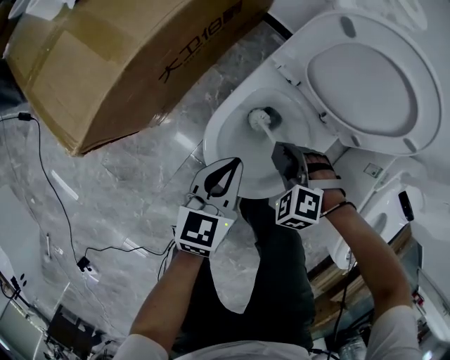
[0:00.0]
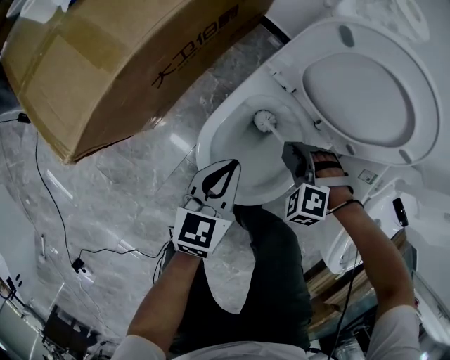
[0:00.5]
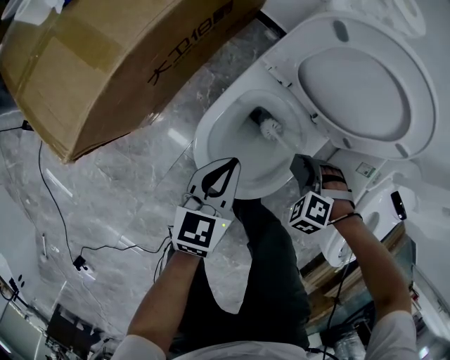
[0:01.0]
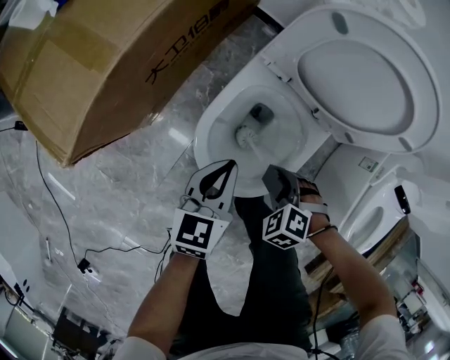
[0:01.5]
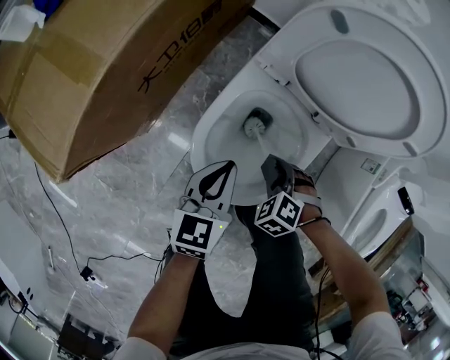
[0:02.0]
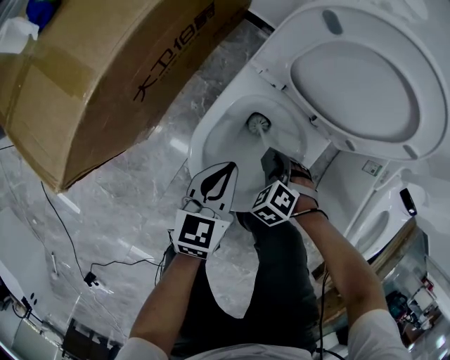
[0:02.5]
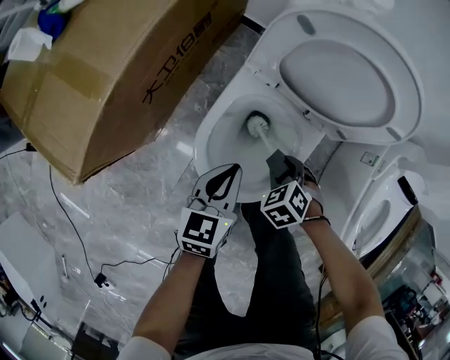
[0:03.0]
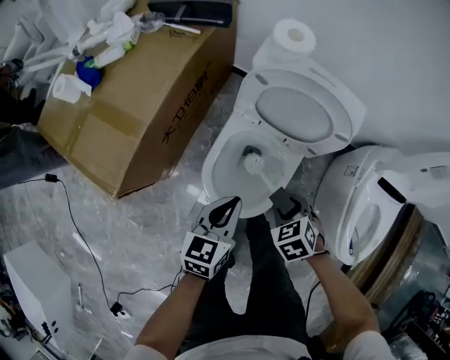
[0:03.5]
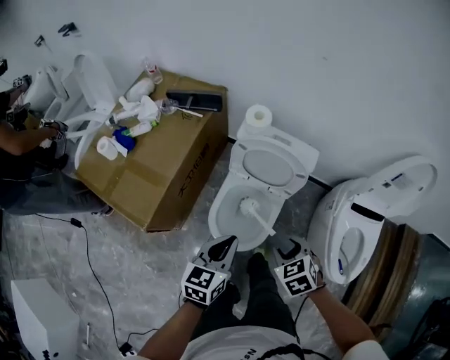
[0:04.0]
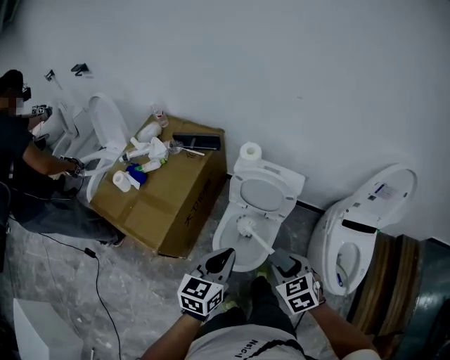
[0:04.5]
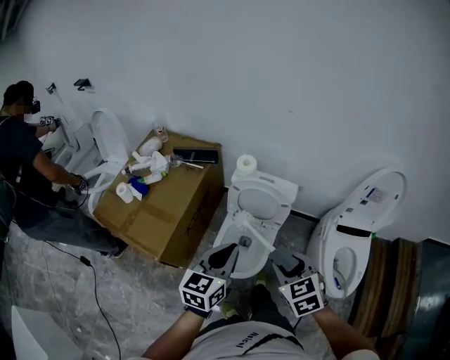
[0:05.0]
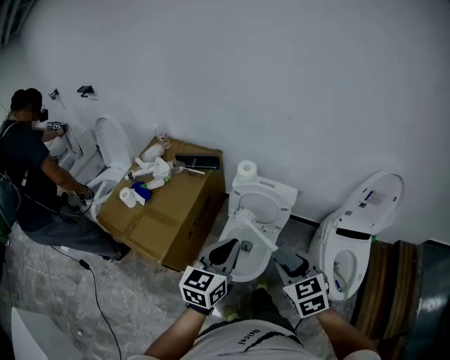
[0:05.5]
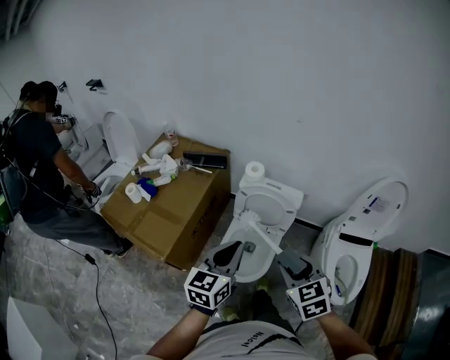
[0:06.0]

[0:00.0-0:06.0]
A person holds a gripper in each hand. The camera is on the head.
0:00.0 to 0:02.0: The right gripper heads downward, covering about 5 cm, and swivels approximately 20 degrees.
0:02.0 to 0:04.0: The two grippers go about 40 cm upward. The right gripper rotates roughly 40 degrees.
0:04.0 to 0:06.0: Both grippers travel together upward, about 20 cm. The right gripper rotates some 20 degrees.

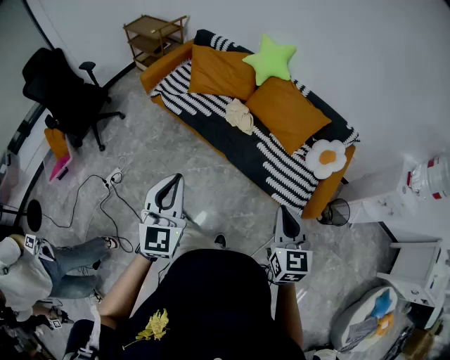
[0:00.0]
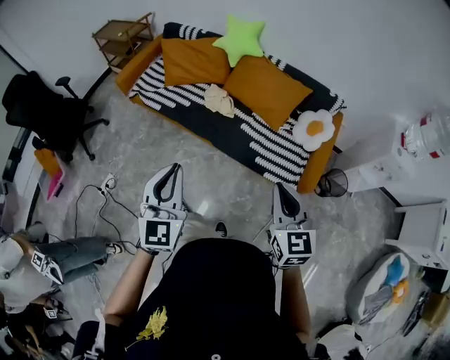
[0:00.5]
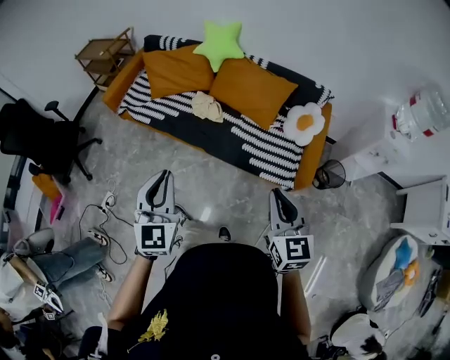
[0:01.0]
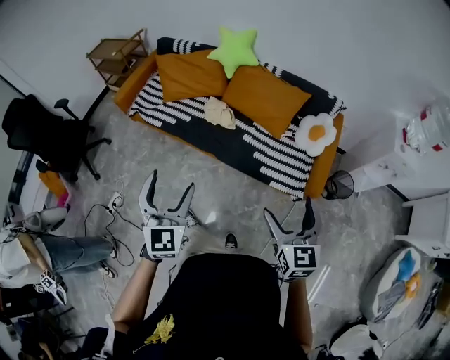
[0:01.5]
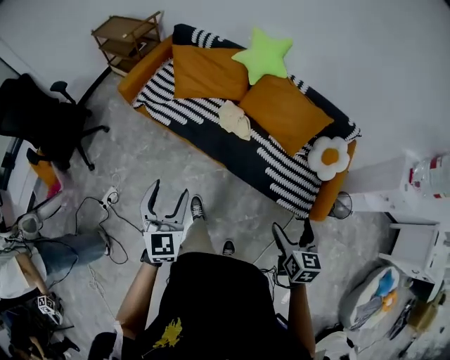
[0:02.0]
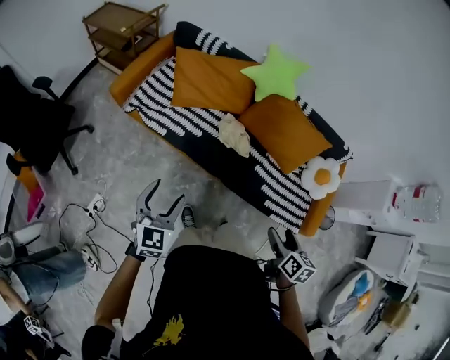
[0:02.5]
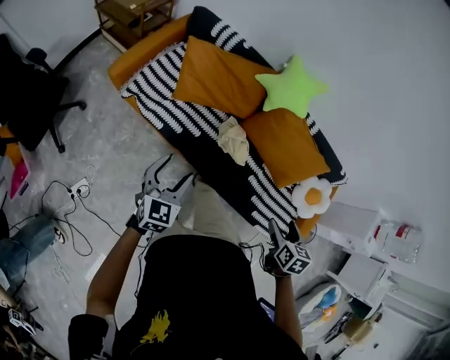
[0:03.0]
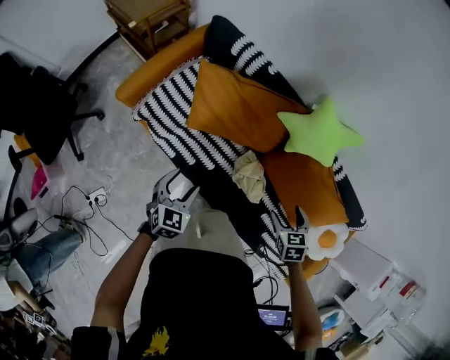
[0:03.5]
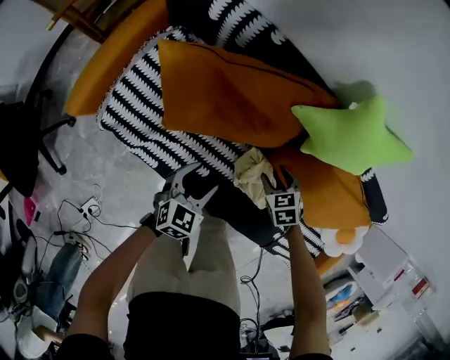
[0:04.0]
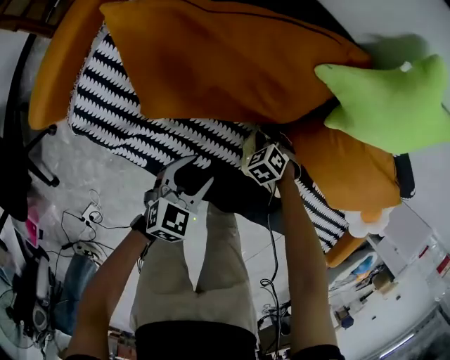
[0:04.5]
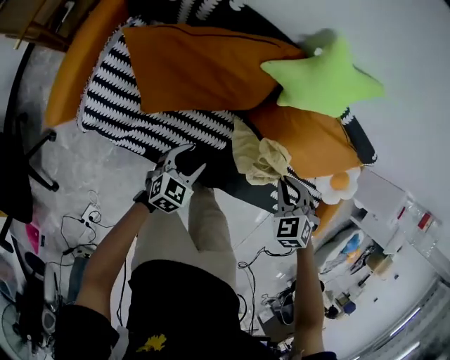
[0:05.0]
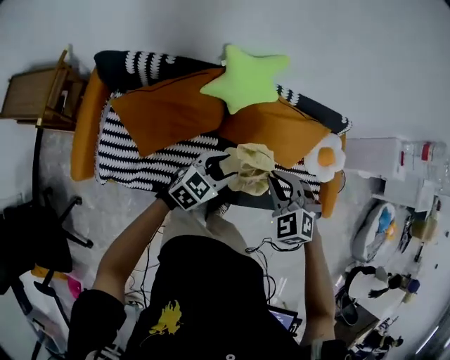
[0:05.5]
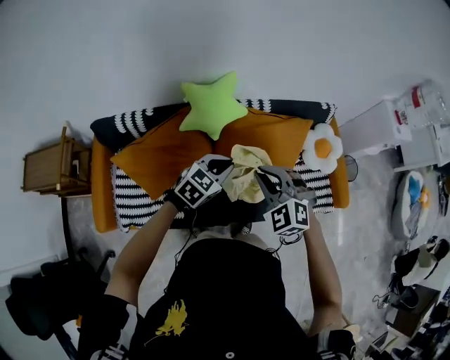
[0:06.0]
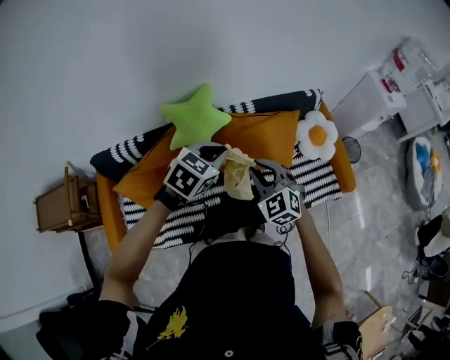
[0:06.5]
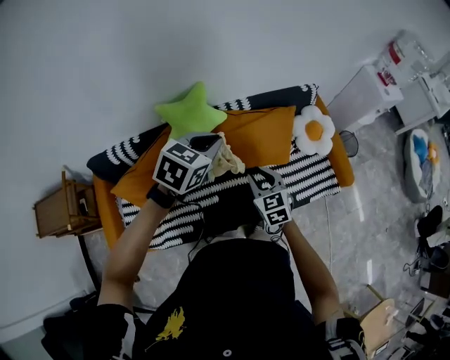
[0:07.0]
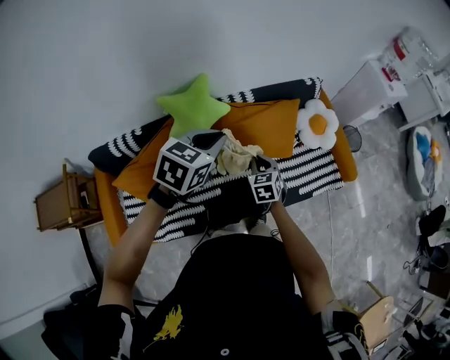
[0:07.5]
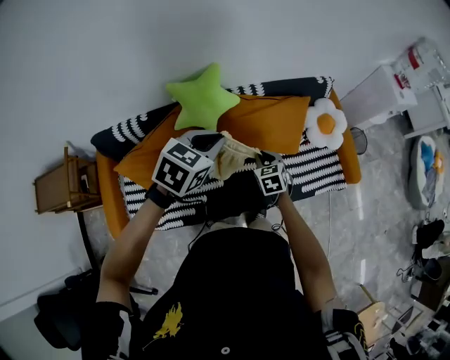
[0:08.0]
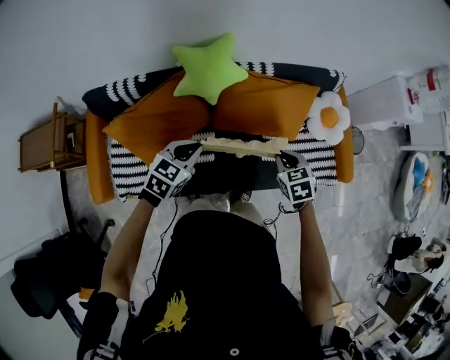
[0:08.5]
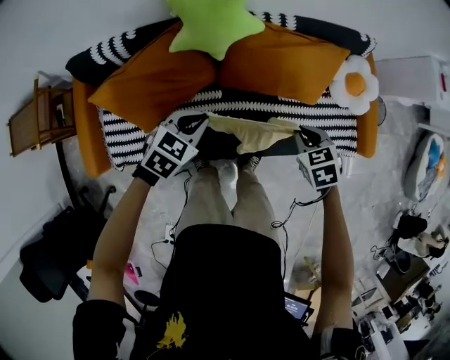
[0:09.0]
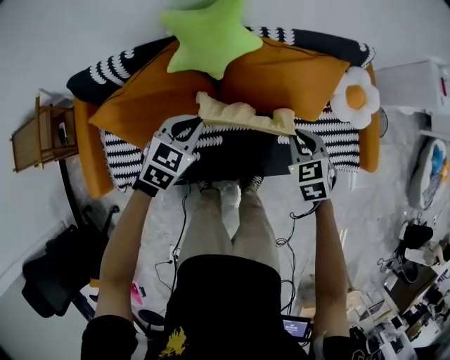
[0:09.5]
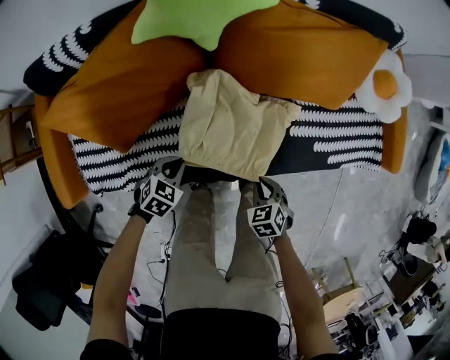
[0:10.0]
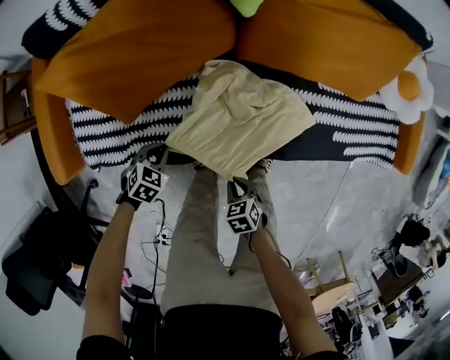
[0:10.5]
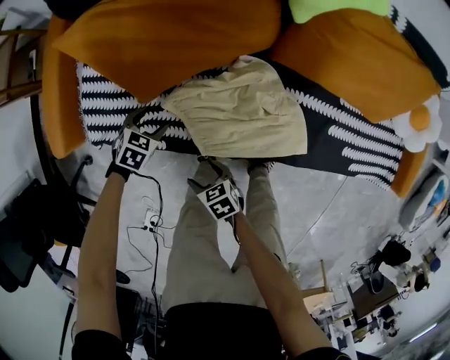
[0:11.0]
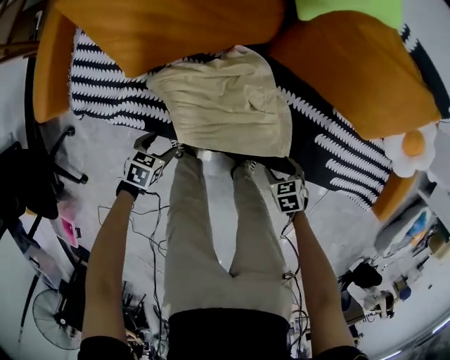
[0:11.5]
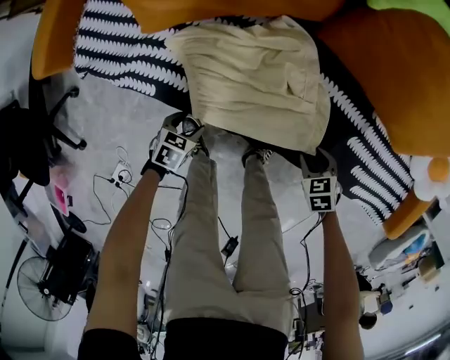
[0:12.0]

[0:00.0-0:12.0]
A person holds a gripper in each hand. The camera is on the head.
0:00.0 to 0:02.0: The left gripper is displaced forward and to the left by roughly 25 cm, and opens; the right gripper goes about 15 cm forward and downward, changes its angle by some 20 degrees, and opens its fingers.
0:02.0 to 0:04.0: The pair of grippers is taken forward, about 80 cm. Both grippers move downward, approximately 40 cm. The left gripper changes its angle by approximately 40 degrees. The right gripper tilts its fingers approximately 30 degrees downward, and closes.
0:04.0 to 0:06.0: Both grippers move upward, approximately 40 cm. The right gripper tilts its fingers approximately 30 degrees upward, and closes up, while the left gripper swivels some 50 degrees, and closes.
0:06.0 to 0:08.0: The right gripper heads downward, covering roughly 20 cm, and twists about 50 degrees clockwise, seen from behind. Meanwhile the left gripper is displaced upward by about 10 cm.
0:08.0 to 0:10.0: The left gripper shifts some 60 cm downward, and turns by approximately 20 degrees; the right gripper heads downward and backward, covering approximately 40 cm, and turns by about 20 degrees.
0:10.0 to 0:12.0: Both grippers travel together downward, about 20 cm. The right gripper swivels about 30 degrees, while the left gripper twists some 40 degrees counterclockwise, seen from behind, and opens its fingers.

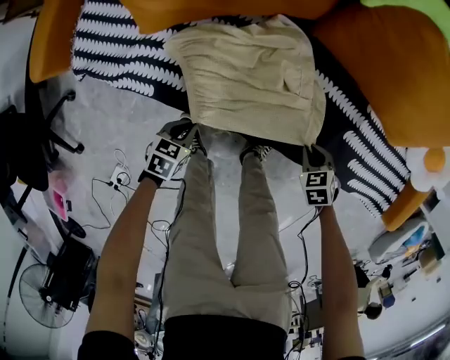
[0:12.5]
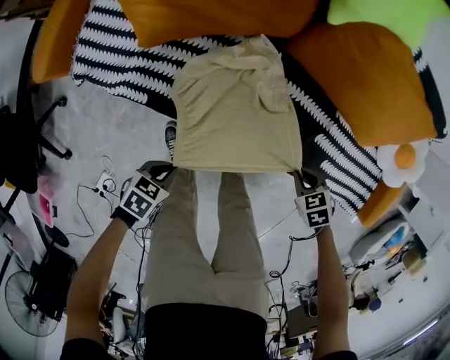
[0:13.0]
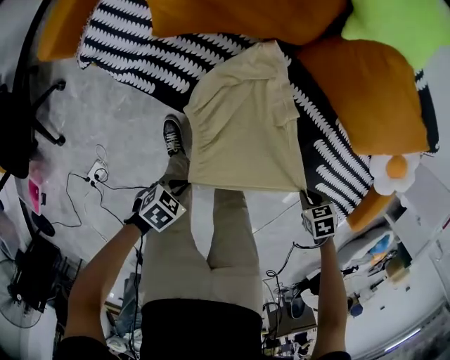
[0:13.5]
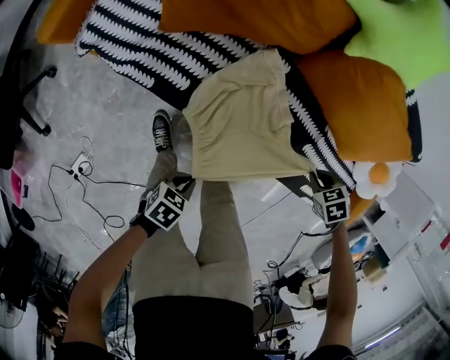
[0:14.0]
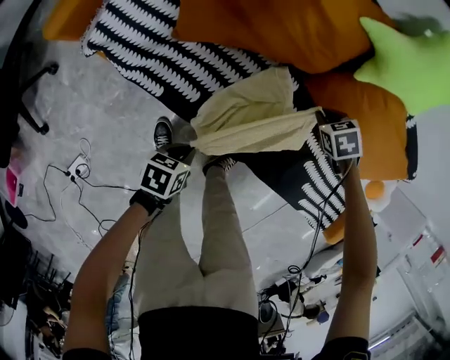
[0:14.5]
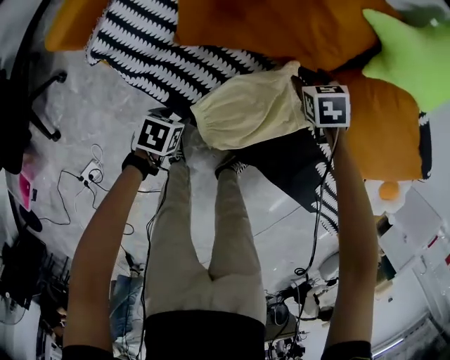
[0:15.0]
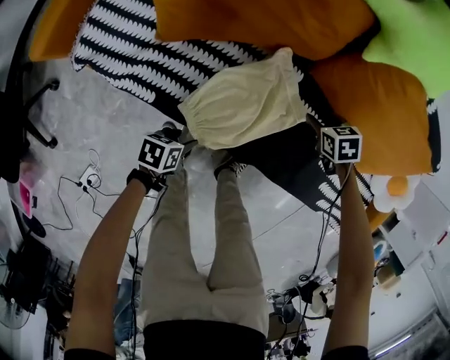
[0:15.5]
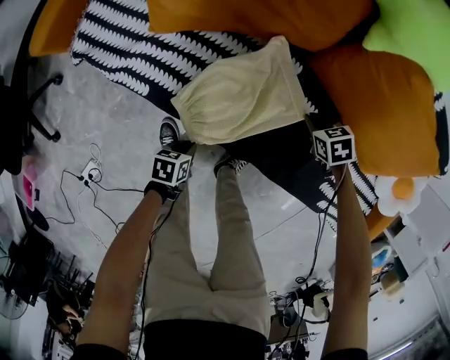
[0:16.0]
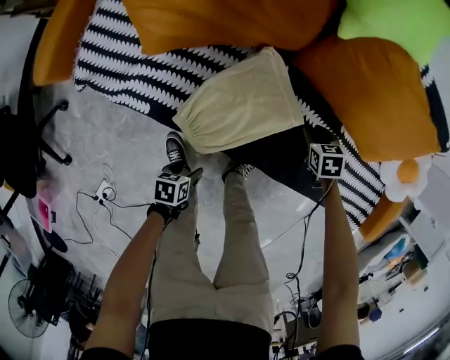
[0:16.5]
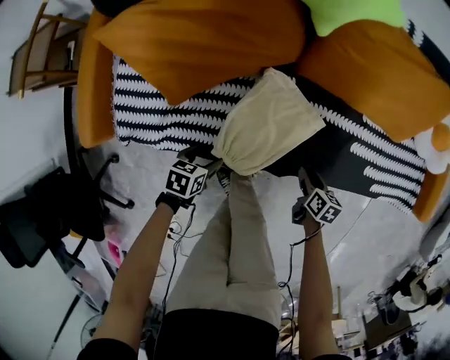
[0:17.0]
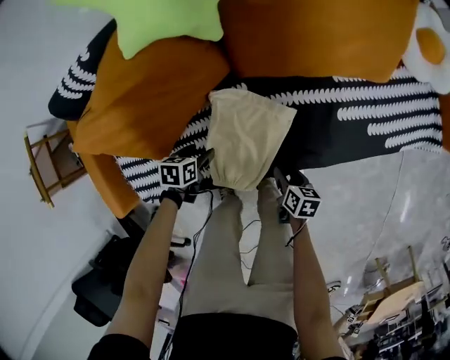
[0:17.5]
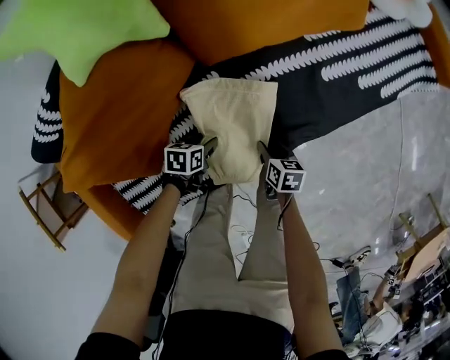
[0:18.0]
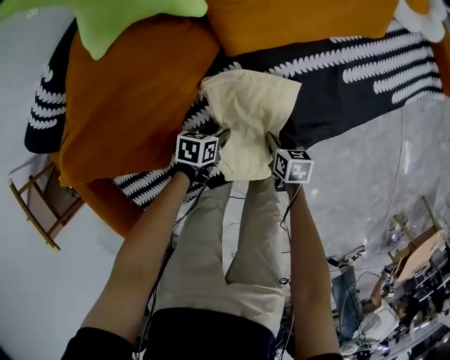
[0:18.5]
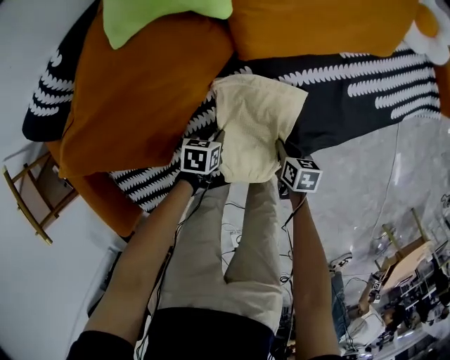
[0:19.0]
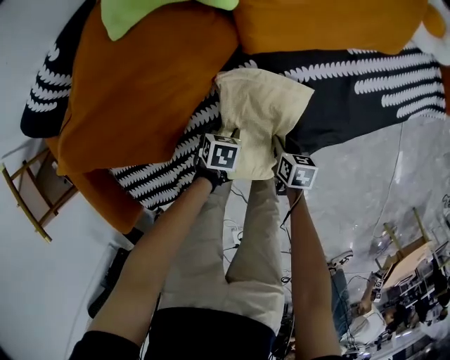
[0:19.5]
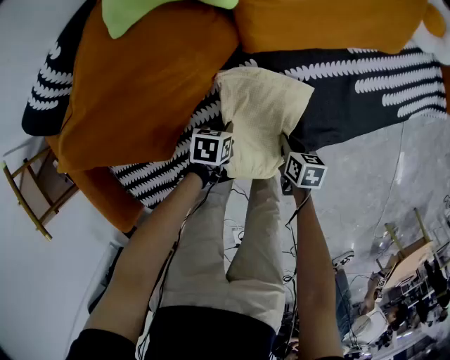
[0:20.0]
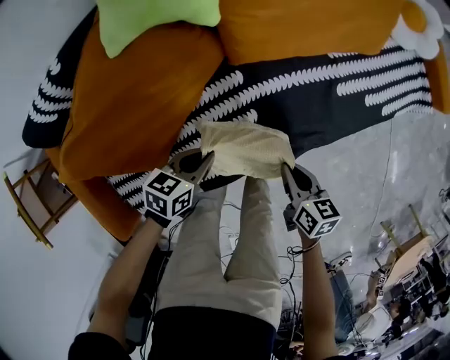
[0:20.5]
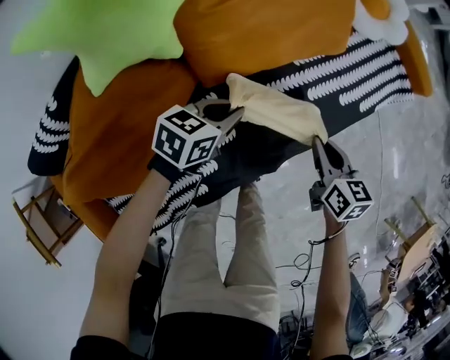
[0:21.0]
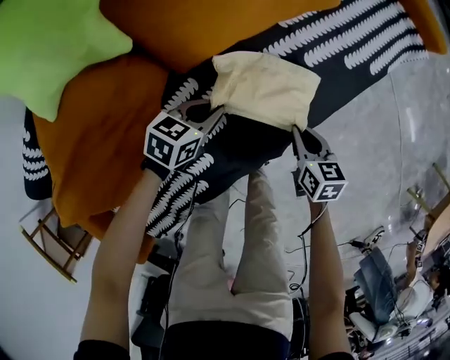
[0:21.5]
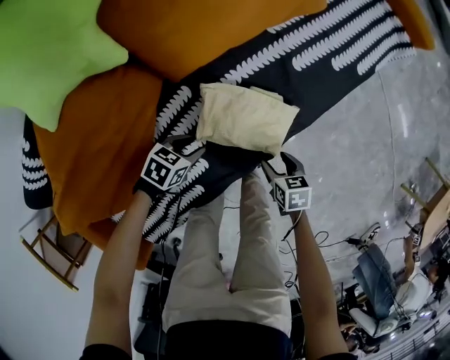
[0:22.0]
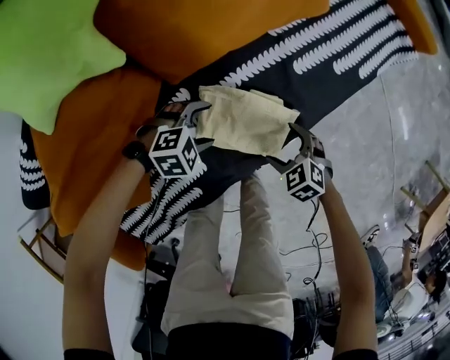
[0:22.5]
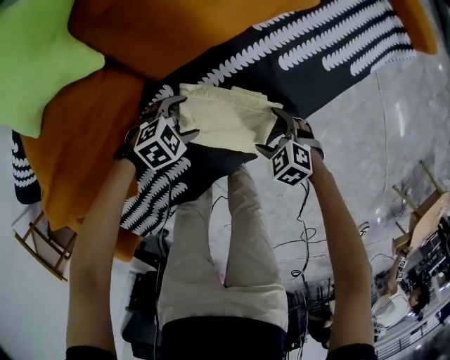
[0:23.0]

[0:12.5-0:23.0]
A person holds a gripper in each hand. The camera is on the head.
0:12.5 to 0:14.5: The right gripper changes place by approximately 30 cm, while the left gripper shifts approximately 15 cm upward, and turns by roughly 30 degrees.
0:14.5 to 0:16.5: The right gripper ends up approximately 20 cm from where it was, and changes its angle by approximately 30 degrees; the left gripper moves downward, about 10 cm, and opens its fingers.
0:16.5 to 0:19.0: The right gripper ends up some 15 cm from where it was, and rolls clockwise, seen from behind, by approximately 70 degrees. Meanwhile the left gripper reaches approximately 10 cm upward, then returns, rotates around the line of its fingers by approximately 50 degrees, clockwise from behind, and closes up.
0:19.0 to 0:21.0: Both grippers move upward, approximately 20 cm. The right gripper changes its angle by roughly 30 degrees, while the left gripper changes its angle by roughly 40 degrees.
0:21.0 to 0:23.0: The two grippers go about 20 cm downward. The left gripper changes its angle by approximately 50 degrees, and opens its fingers; the right gripper rolls counterclockwise, seen from behind, by some 50 degrees, and opens.
